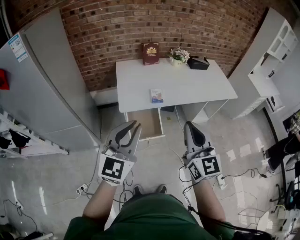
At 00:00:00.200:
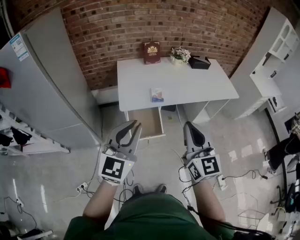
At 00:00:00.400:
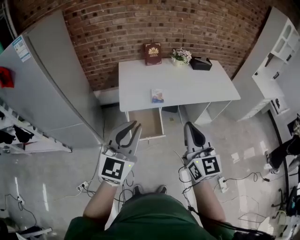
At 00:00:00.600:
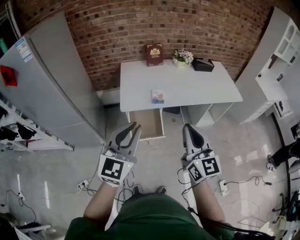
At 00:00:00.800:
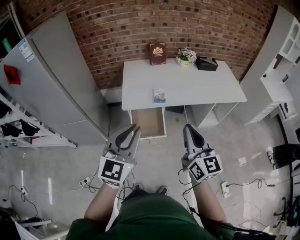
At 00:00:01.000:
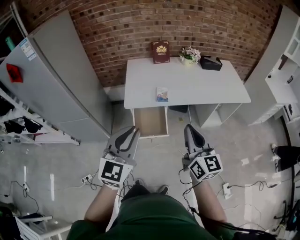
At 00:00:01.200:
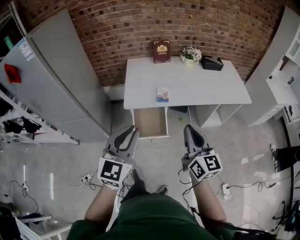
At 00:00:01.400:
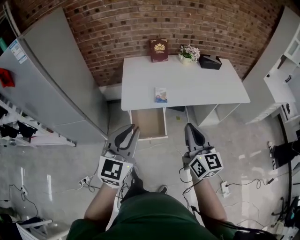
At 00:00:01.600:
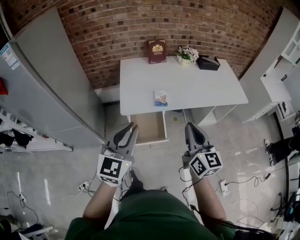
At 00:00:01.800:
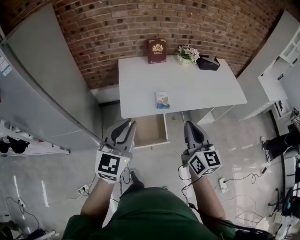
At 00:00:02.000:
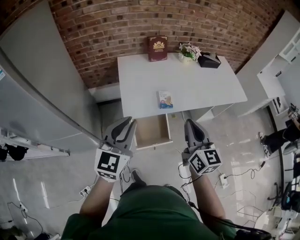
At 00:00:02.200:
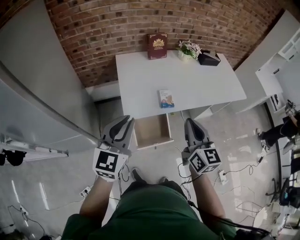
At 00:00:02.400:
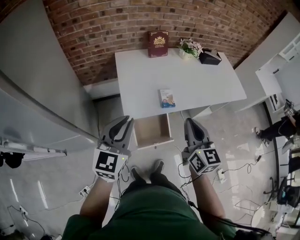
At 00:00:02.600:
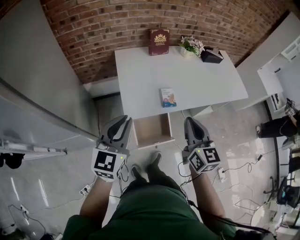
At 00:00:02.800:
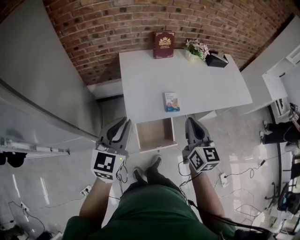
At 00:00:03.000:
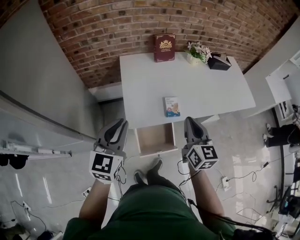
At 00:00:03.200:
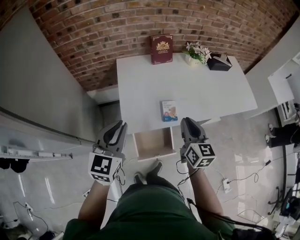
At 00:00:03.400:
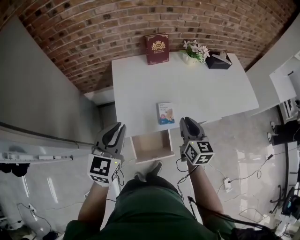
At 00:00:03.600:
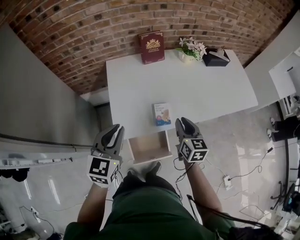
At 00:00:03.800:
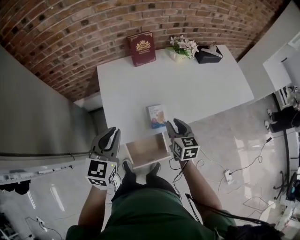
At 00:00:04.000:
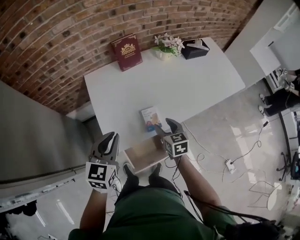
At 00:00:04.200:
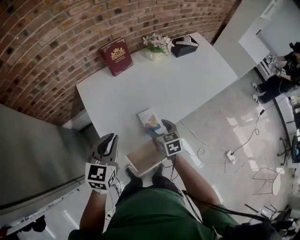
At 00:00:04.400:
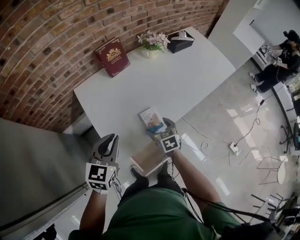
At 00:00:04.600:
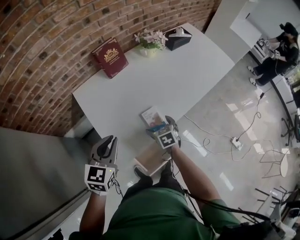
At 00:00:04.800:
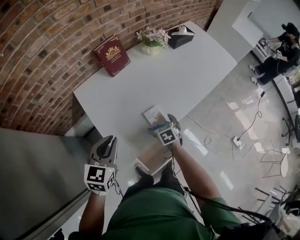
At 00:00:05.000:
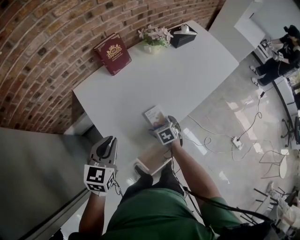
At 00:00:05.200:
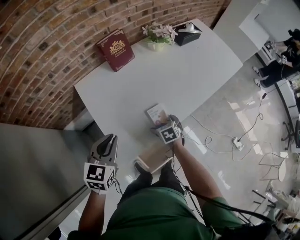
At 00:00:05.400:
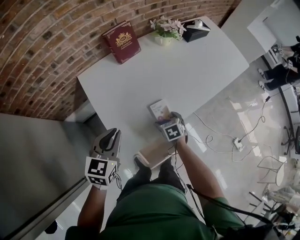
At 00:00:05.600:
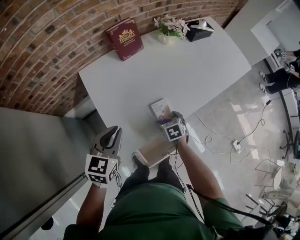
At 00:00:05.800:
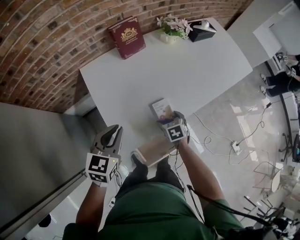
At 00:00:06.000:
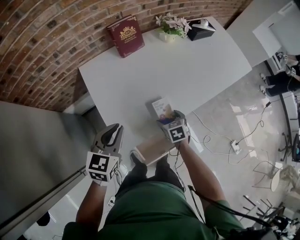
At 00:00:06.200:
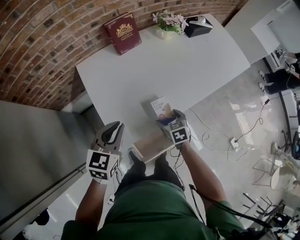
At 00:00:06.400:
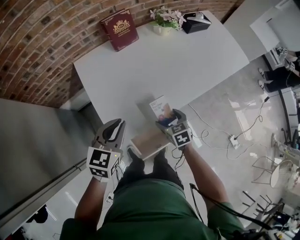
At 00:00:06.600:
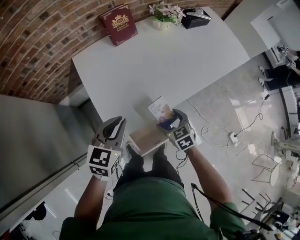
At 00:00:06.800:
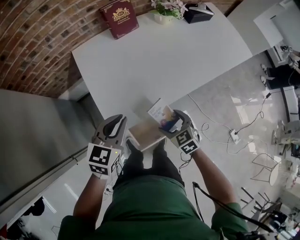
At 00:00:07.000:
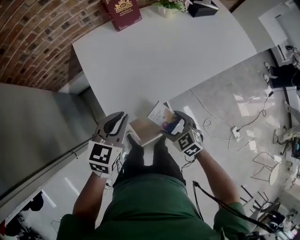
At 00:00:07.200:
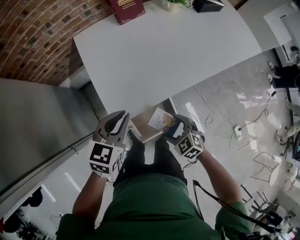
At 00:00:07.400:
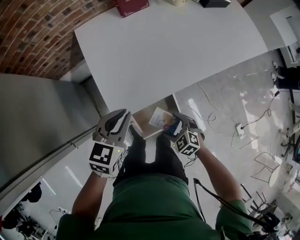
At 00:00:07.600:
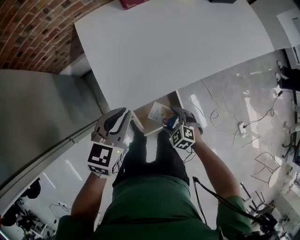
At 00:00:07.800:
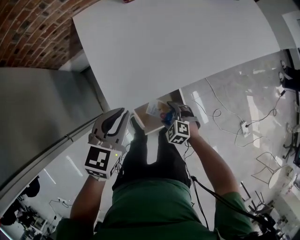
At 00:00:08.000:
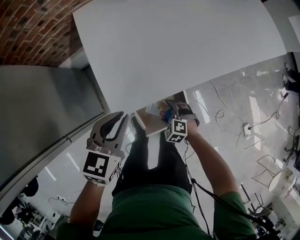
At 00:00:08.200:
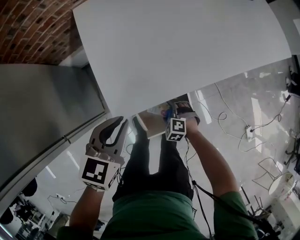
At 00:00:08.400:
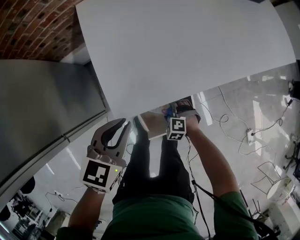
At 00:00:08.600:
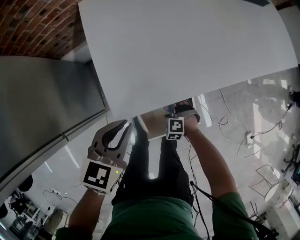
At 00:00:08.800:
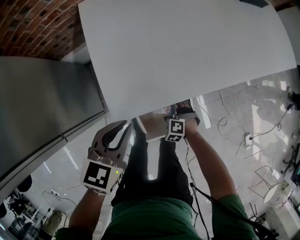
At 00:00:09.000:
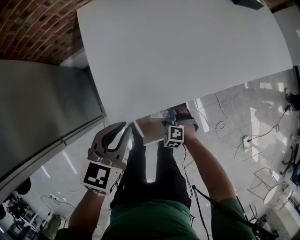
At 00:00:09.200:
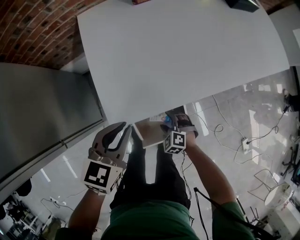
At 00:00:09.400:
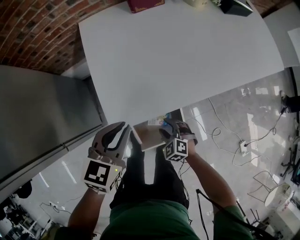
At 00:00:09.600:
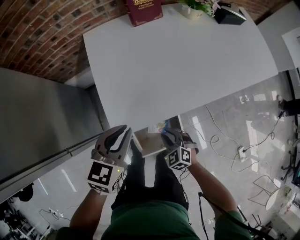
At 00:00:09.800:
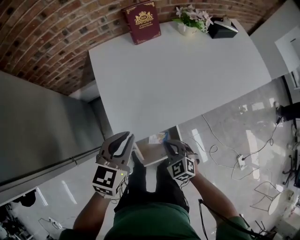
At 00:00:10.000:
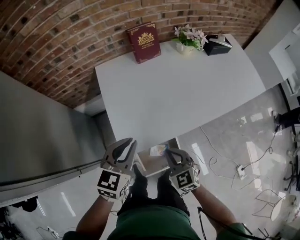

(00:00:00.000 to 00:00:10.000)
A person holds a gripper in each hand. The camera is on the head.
00:00:00.000 - 00:00:01.400: The left gripper heads to the right, covering about 5 cm. Meanwhile the right gripper is displaced to the right, downward and forward by approximately 10 cm.
00:00:01.400 - 00:00:02.800: The grippers both shift forward and to the left by roughly 25 cm.
00:00:02.800 - 00:00:04.200: The left gripper travels forward and downward by roughly 20 cm, and swivels approximately 20 degrees, while the right gripper goes roughly 30 cm downward and forward, tilts its fingers some 30 degrees downward, and opens.
00:00:04.200 - 00:00:05.800: The right gripper shifts about 10 cm downward, and swivels about 20 degrees. The left gripper shifts approximately 5 cm downward.
00:00:05.800 - 00:00:07.200: The right gripper moves backward, about 20 cm, and swivels some 40 degrees, while the left gripper is displaced backward and to the right by some 10 cm.
00:00:07.200 - 00:00:08.600: The right gripper heads downward, covering approximately 25 cm, and changes its angle by about 40 degrees, while the left gripper moves downward, some 10 cm.
00:00:08.600 - 00:00:10.000: The right gripper moves upward, about 35 cm, tilts its fingers approximately 30 degrees upward, and closes its fingers. The left gripper goes about 15 cm upward.

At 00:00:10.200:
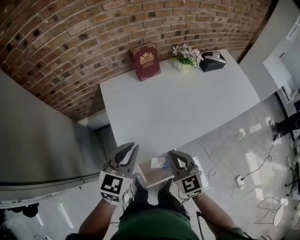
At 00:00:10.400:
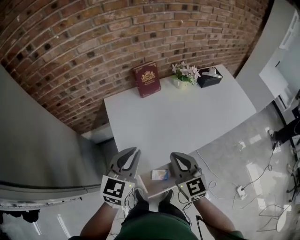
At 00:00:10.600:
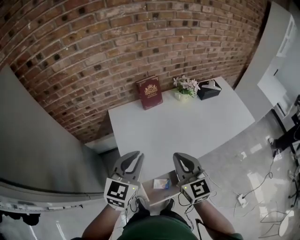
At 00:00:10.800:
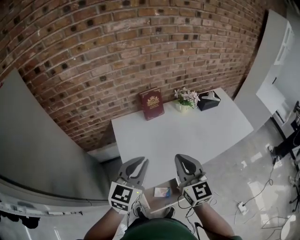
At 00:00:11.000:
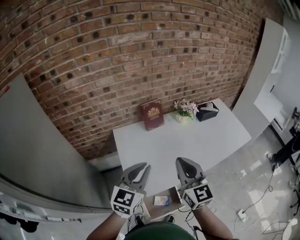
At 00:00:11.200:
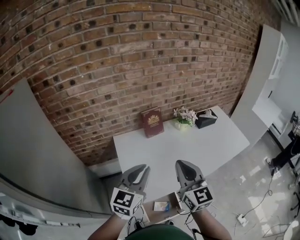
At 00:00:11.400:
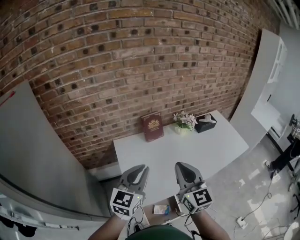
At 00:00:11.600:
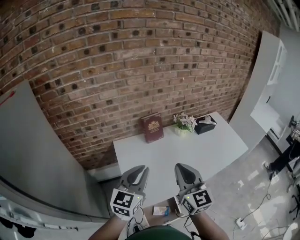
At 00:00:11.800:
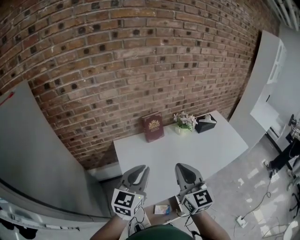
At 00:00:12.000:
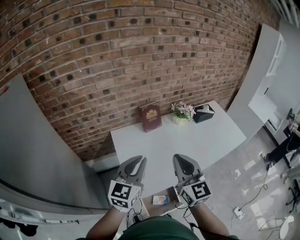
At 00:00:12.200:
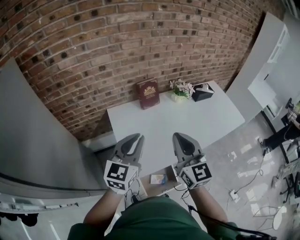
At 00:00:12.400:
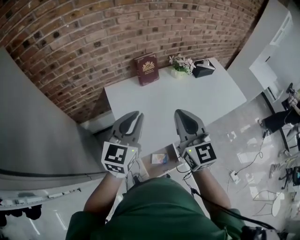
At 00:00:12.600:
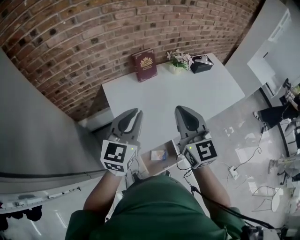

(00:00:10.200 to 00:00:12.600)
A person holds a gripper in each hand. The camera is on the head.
00:00:10.200 - 00:00:11.400: The right gripper shifts roughly 25 cm upward, and turns by roughly 30 degrees. Meanwhile the left gripper heads upward, covering about 15 cm.
00:00:11.400 - 00:00:12.600: The grippers stay close to where they were, moving slightly.

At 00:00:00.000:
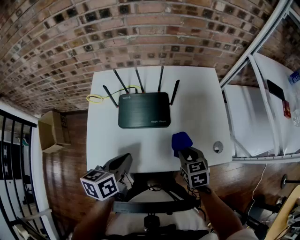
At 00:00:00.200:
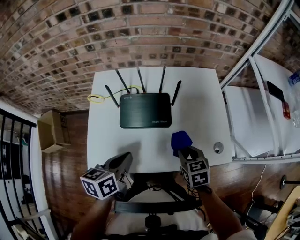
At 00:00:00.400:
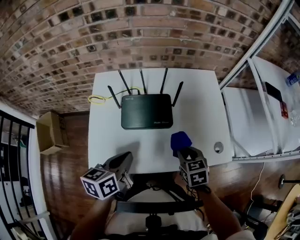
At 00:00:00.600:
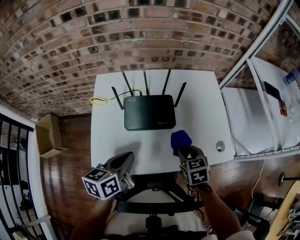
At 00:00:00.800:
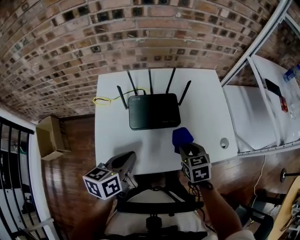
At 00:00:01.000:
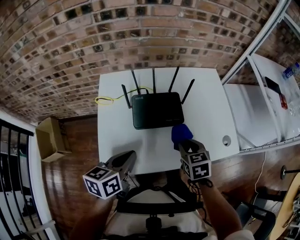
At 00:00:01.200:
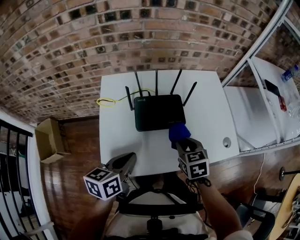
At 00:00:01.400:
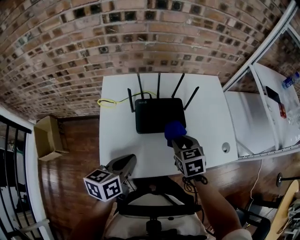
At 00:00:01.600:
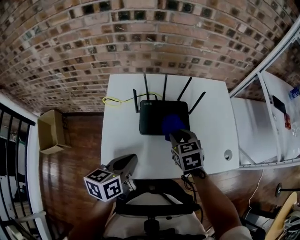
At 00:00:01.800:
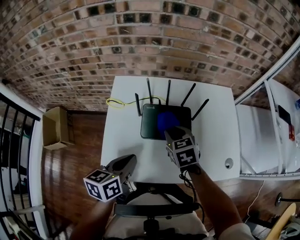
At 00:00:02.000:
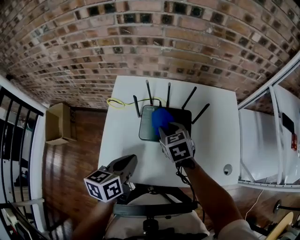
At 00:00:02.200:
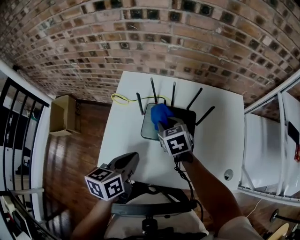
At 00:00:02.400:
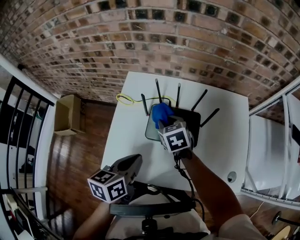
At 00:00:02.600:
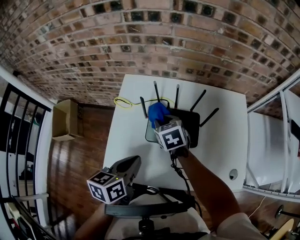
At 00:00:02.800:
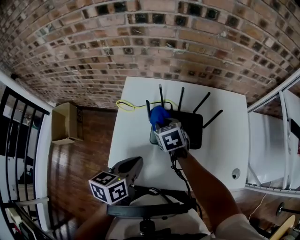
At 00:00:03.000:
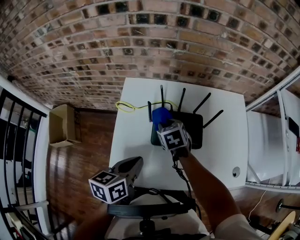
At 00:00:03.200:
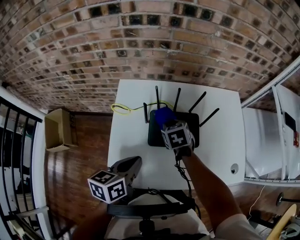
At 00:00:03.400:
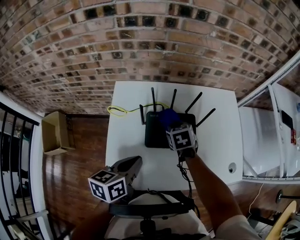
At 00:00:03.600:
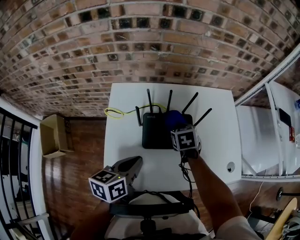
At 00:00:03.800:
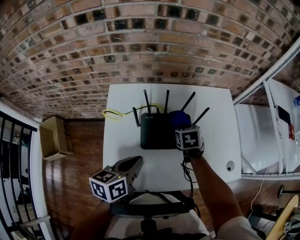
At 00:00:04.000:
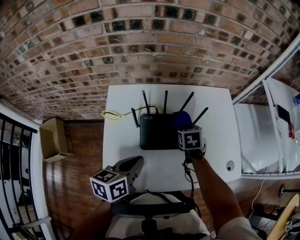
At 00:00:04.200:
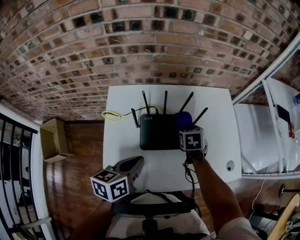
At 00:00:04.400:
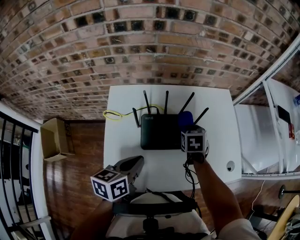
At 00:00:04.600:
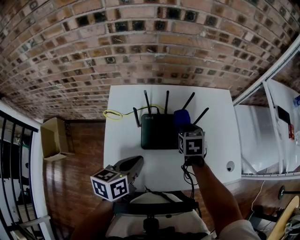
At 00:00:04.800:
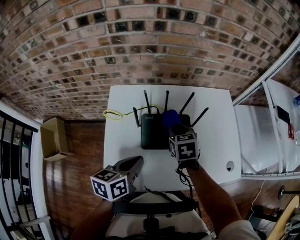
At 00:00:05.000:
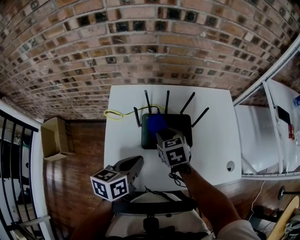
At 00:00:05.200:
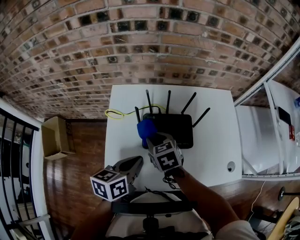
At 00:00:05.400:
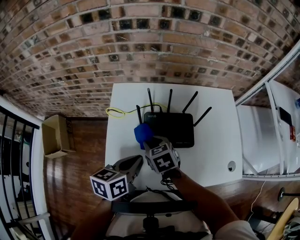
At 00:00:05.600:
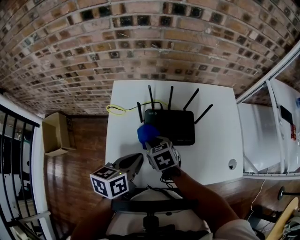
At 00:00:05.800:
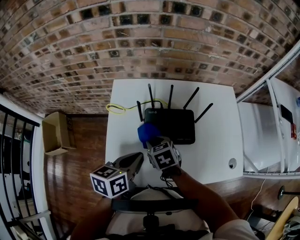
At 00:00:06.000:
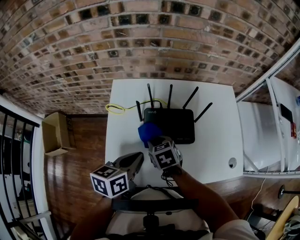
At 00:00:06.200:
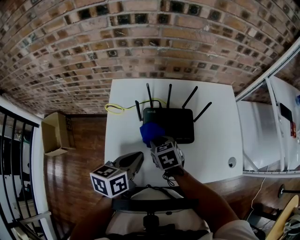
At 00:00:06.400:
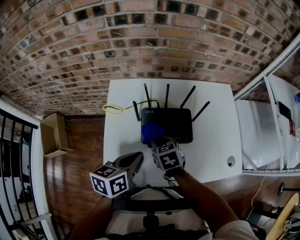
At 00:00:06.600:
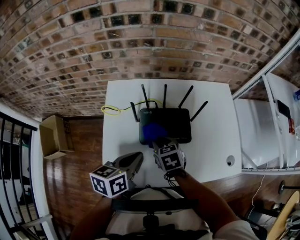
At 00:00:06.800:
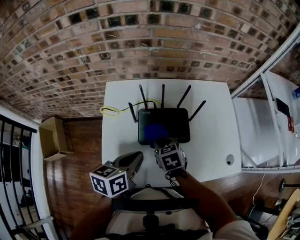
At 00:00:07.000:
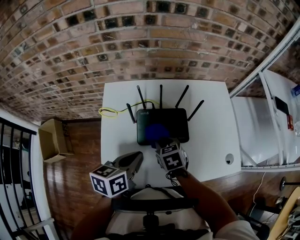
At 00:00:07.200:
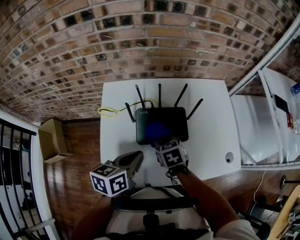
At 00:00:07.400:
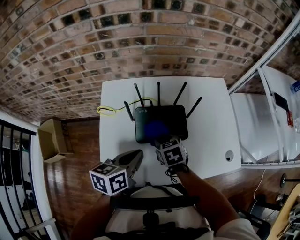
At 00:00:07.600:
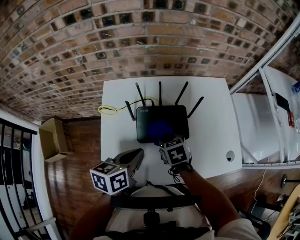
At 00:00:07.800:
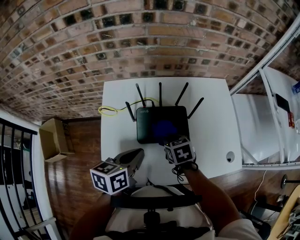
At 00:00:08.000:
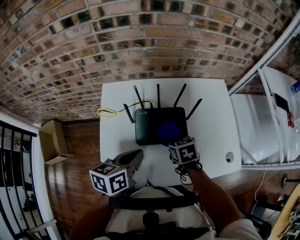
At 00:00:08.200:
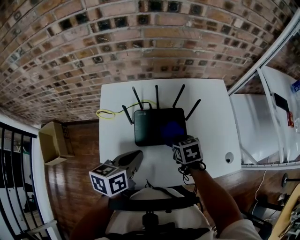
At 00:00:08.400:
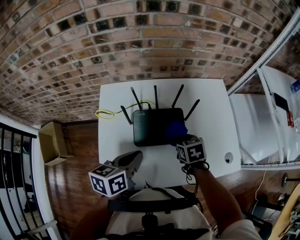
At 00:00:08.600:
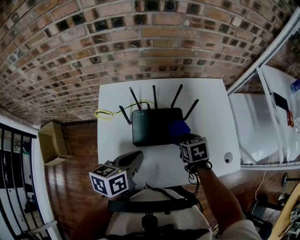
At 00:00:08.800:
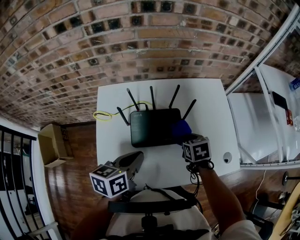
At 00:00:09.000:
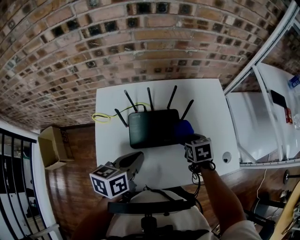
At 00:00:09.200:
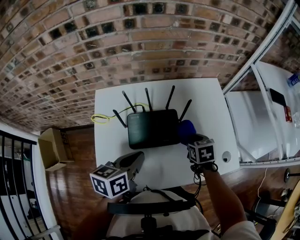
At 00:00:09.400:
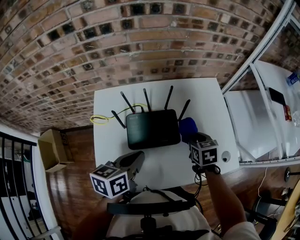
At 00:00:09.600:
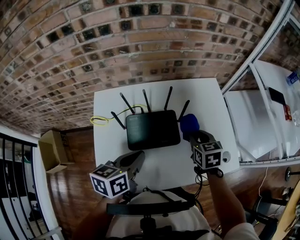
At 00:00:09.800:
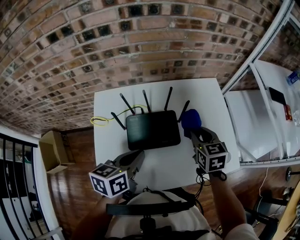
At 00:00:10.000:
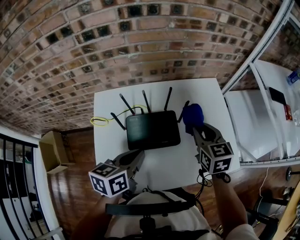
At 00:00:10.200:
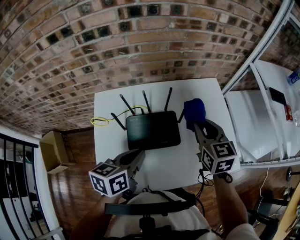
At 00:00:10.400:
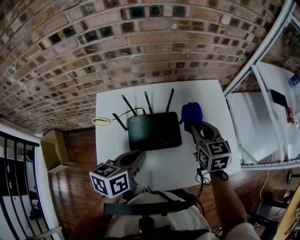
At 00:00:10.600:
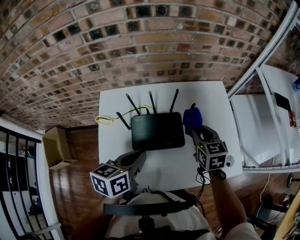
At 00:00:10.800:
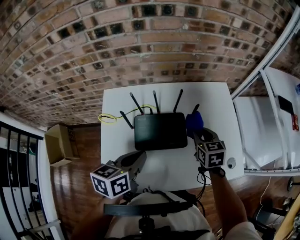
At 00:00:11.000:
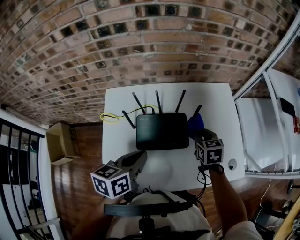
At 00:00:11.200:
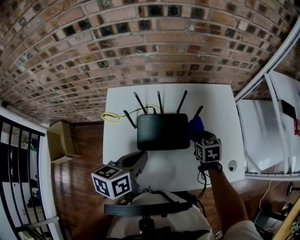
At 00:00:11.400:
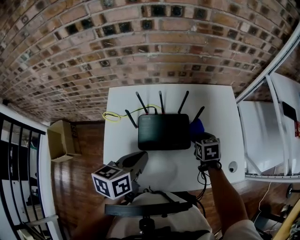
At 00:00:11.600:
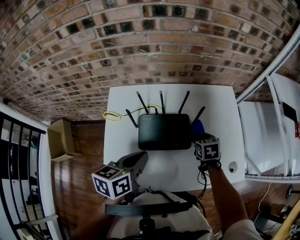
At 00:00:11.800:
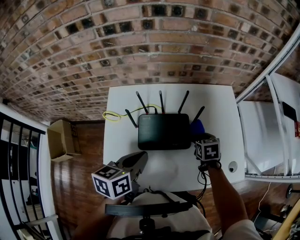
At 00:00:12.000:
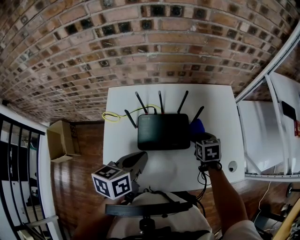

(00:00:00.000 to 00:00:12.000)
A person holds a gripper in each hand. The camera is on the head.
00:00:00.000 - 00:00:01.600: The left gripper heads to the left, covering approximately 10 cm. The right gripper shifts roughly 20 cm to the left.
00:00:01.600 - 00:00:03.000: The left gripper travels forward by approximately 5 cm, while the right gripper heads forward and to the left, covering approximately 15 cm.
00:00:03.000 - 00:00:04.400: The right gripper is displaced to the right by approximately 20 cm, and turns by approximately 30 degrees.
00:00:04.400 - 00:00:06.000: The right gripper is displaced to the left and backward by some 20 cm, and turns by some 30 degrees.
00:00:06.000 - 00:00:07.600: The right gripper shifts roughly 10 cm to the right.
00:00:07.600 - 00:00:09.000: The right gripper shifts roughly 15 cm to the right.
00:00:09.000 - 00:00:10.400: The right gripper shifts about 15 cm upward, and rotates approximately 30 degrees.
00:00:10.400 - 00:00:12.000: The right gripper is displaced downward by about 15 cm, and changes its angle by some 20 degrees.
